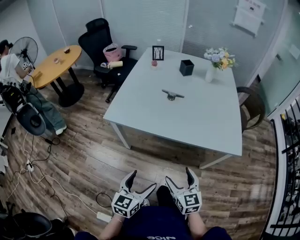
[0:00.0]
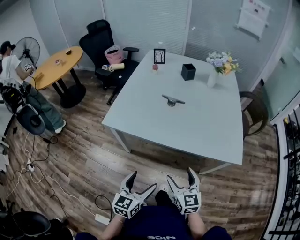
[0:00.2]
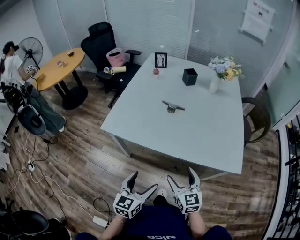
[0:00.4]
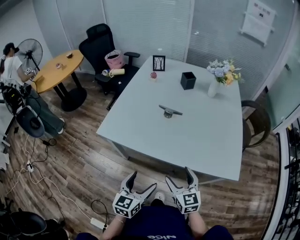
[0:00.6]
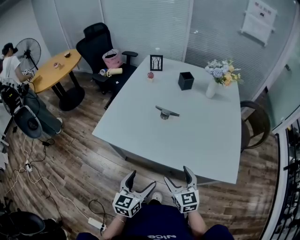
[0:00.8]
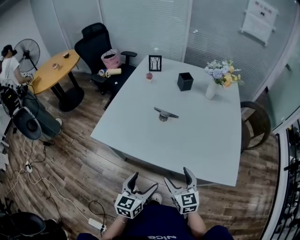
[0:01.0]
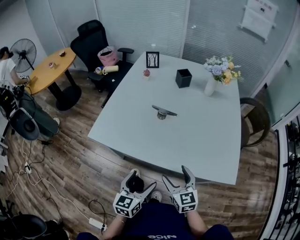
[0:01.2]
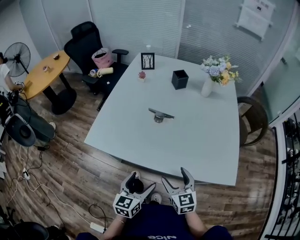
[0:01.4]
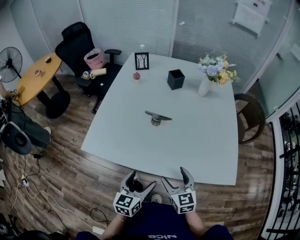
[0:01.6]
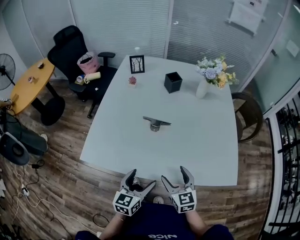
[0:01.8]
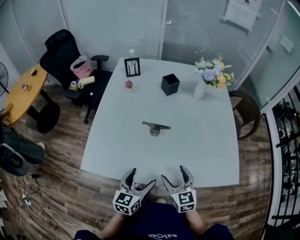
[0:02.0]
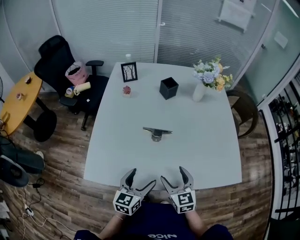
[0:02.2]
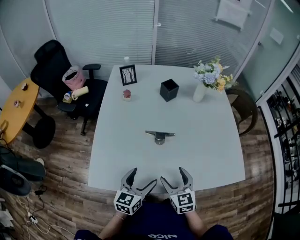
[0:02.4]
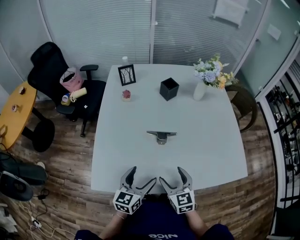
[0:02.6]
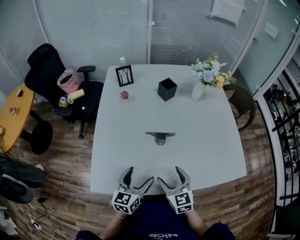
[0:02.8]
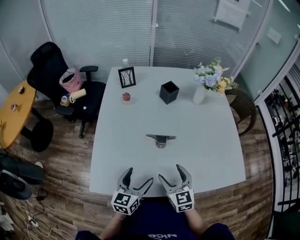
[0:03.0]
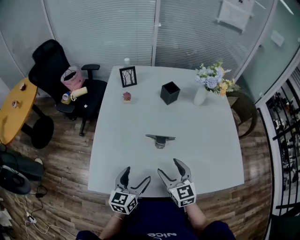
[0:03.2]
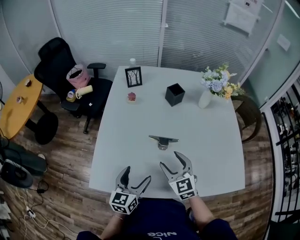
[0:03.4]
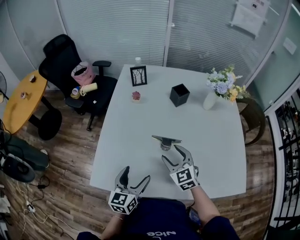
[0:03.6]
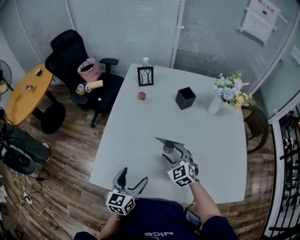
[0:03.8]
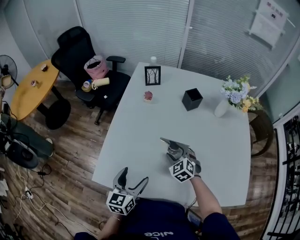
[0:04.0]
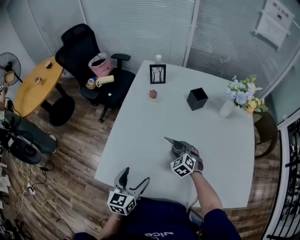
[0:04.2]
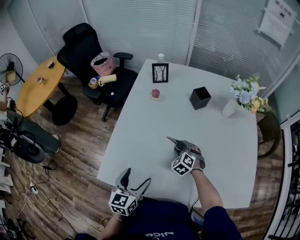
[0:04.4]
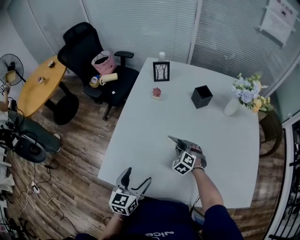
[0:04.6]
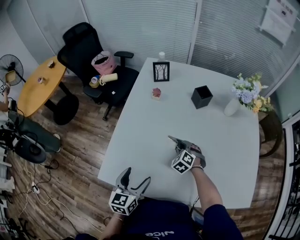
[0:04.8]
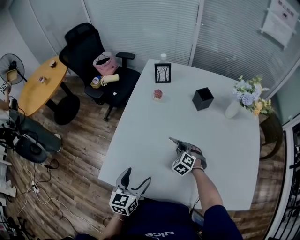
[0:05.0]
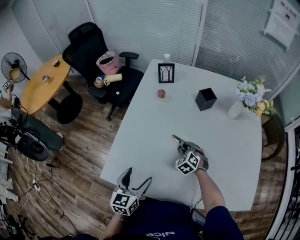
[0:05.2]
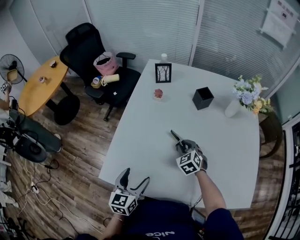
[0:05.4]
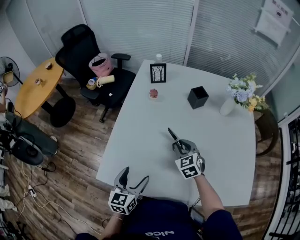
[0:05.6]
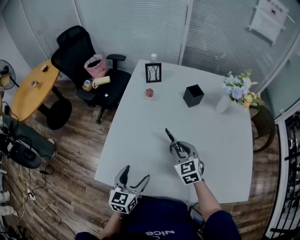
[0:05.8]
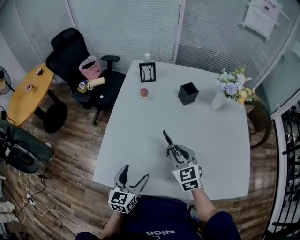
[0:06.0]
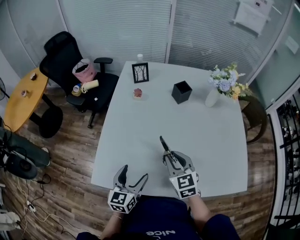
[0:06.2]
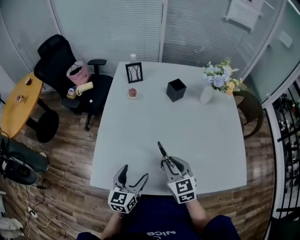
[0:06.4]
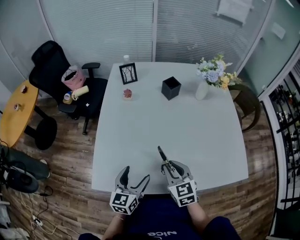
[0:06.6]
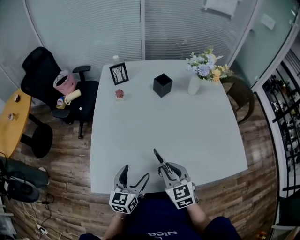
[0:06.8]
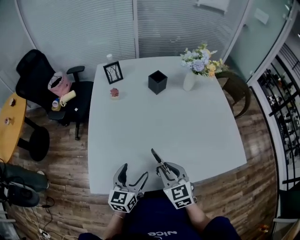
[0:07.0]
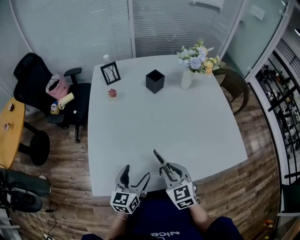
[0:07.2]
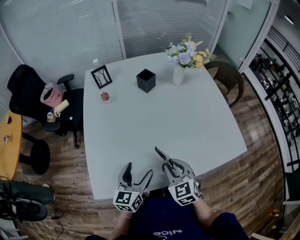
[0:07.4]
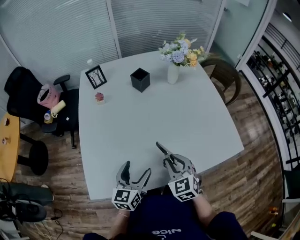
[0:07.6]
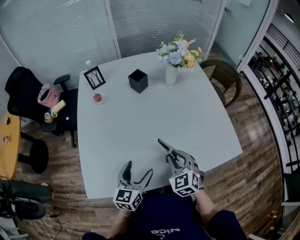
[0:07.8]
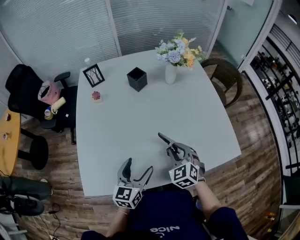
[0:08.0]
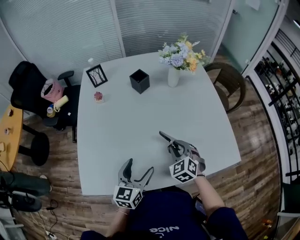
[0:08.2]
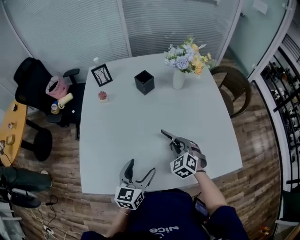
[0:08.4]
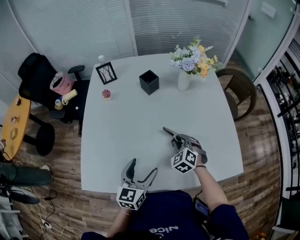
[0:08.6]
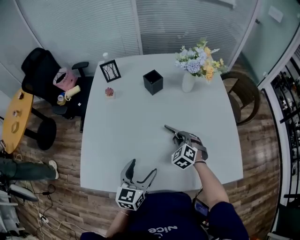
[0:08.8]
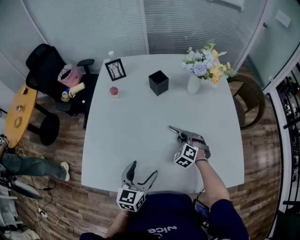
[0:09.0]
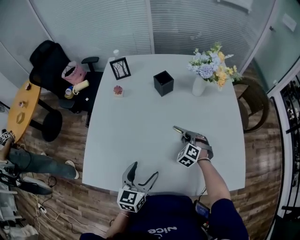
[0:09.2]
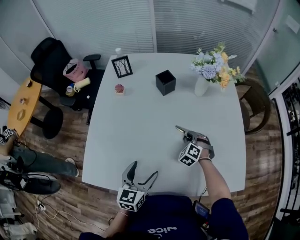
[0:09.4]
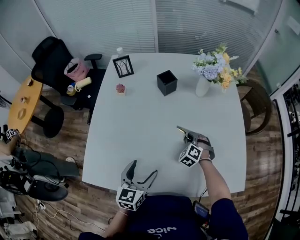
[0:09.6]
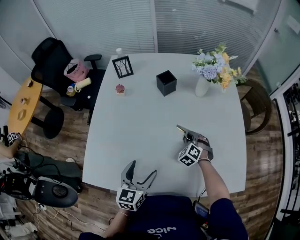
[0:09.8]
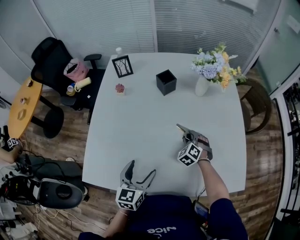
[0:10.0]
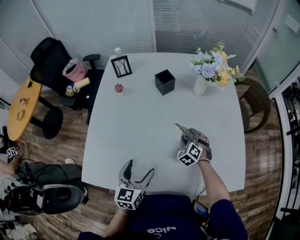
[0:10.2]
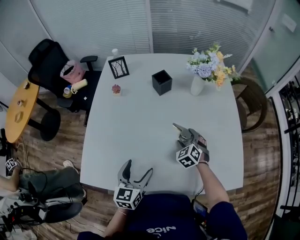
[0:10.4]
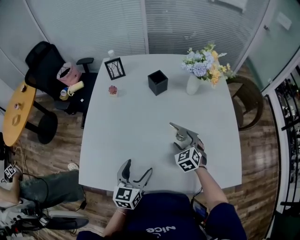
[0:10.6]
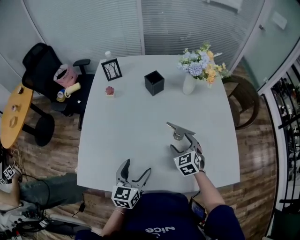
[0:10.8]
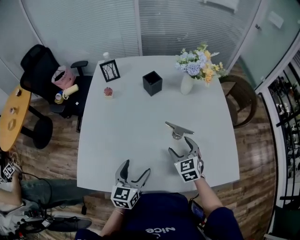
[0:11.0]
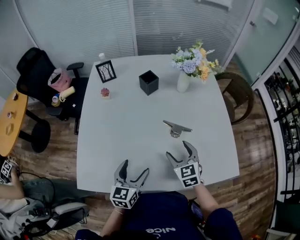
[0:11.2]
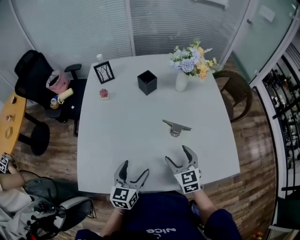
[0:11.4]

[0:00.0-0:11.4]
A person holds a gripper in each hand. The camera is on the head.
0:00.0 to 0:01.4: The left gripper is displaced forward and to the right by some 20 cm; the right gripper heads forward, covering some 20 cm.
0:01.4 to 0:02.8: The right gripper is displaced to the left and forward by some 20 cm. Meanwhile the left gripper travels forward and to the left by roughly 25 cm.
0:02.8 to 0:04.2: The left gripper moves about 5 cm. The right gripper moves forward and downward, approximately 20 cm, and swivels roughly 40 degrees.
0:04.2 to 0:05.6: The right gripper moves upward, about 10 cm.
0:05.6 to 0:07.2: The right gripper goes roughly 20 cm backward, and rotates some 20 degrees. Meanwhile the left gripper goes some 5 cm to the right, and rotates approximately 20 degrees.
0:07.2 to 0:08.6: The right gripper heads forward, to the right and downward, covering about 25 cm, and turns by roughly 30 degrees, while the left gripper is displaced to the right and forward by roughly 15 cm.
0:08.6 to 0:10.0: The right gripper shifts roughly 10 cm forward and downward.
0:10.0 to 0:11.4: The right gripper is displaced backward and upward by about 20 cm, rotates roughly 50 degrees, and opens its fingers.

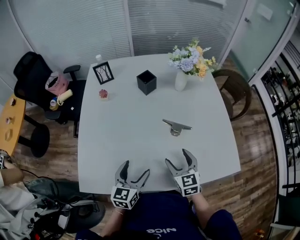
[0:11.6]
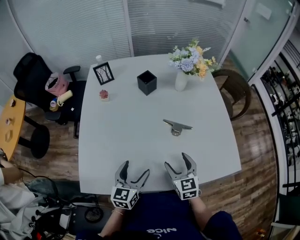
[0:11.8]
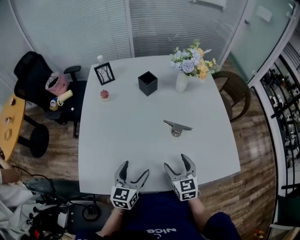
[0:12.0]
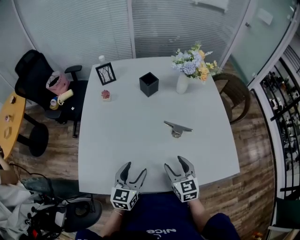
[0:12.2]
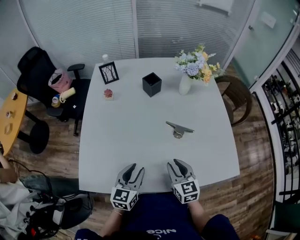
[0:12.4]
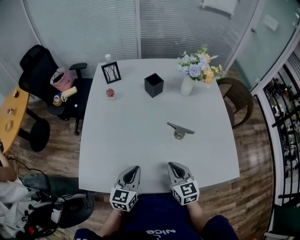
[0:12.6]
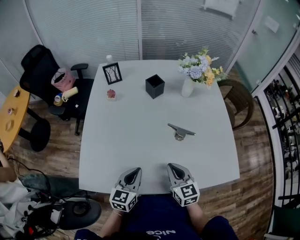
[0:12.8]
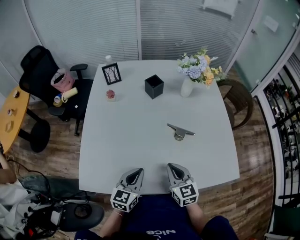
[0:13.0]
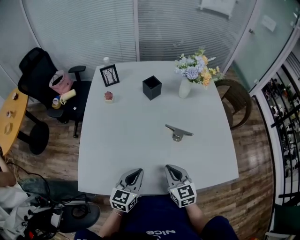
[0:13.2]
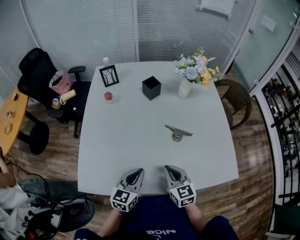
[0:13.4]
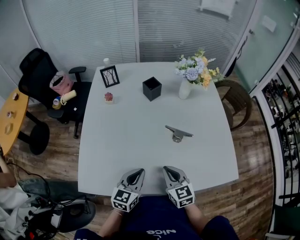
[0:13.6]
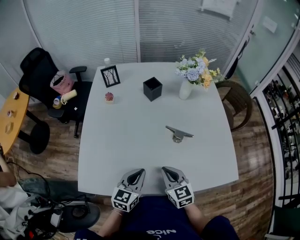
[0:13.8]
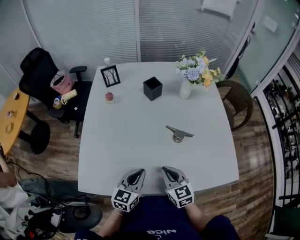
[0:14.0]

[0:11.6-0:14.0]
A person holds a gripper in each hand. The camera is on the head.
0:11.6 to 0:12.8: The left gripper closes its fingers. The right gripper changes place by about 5 cm, and closes up.
0:12.8 to 0:14.0: The grippers make only small movements.

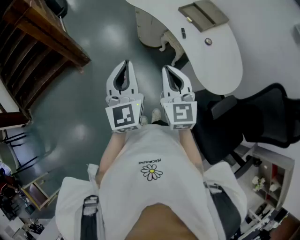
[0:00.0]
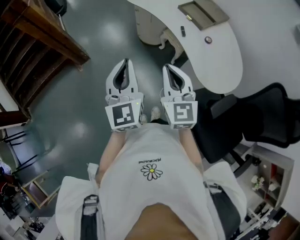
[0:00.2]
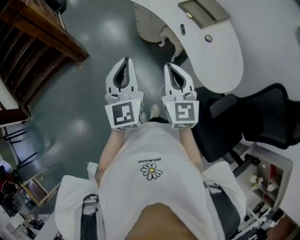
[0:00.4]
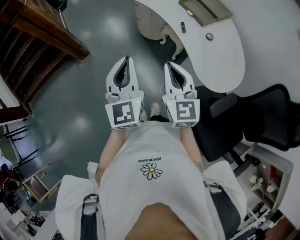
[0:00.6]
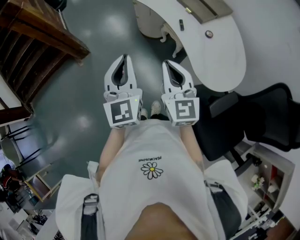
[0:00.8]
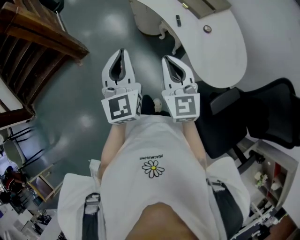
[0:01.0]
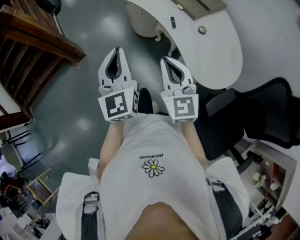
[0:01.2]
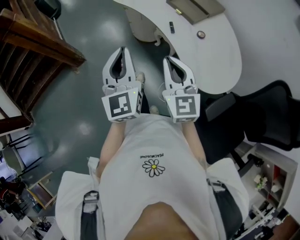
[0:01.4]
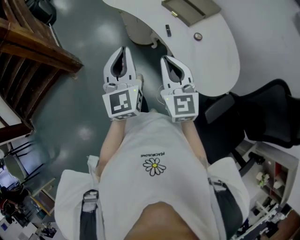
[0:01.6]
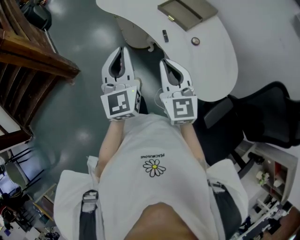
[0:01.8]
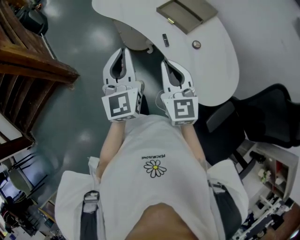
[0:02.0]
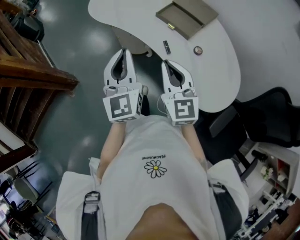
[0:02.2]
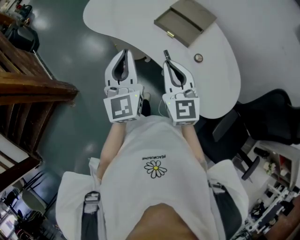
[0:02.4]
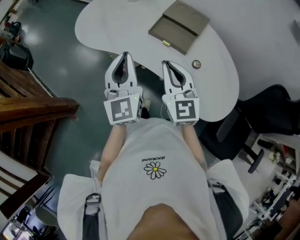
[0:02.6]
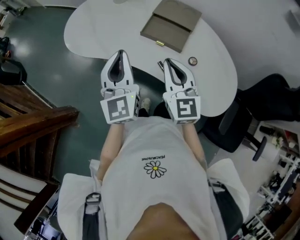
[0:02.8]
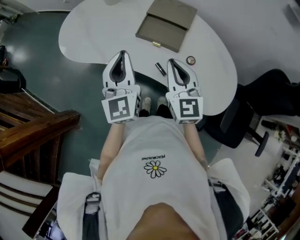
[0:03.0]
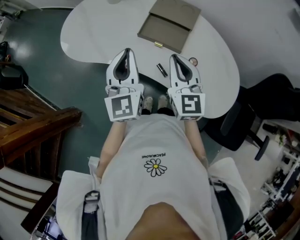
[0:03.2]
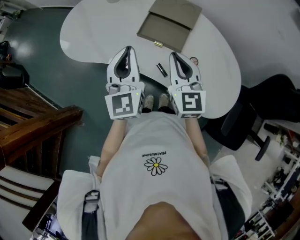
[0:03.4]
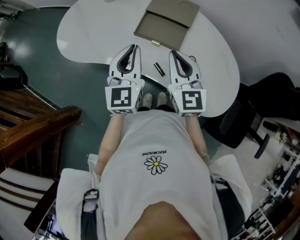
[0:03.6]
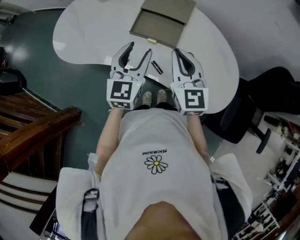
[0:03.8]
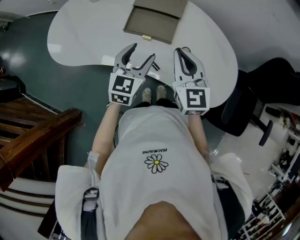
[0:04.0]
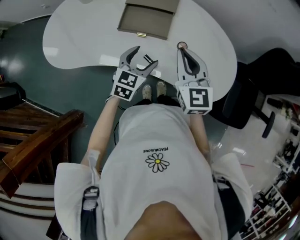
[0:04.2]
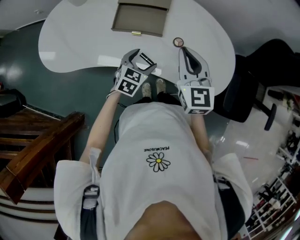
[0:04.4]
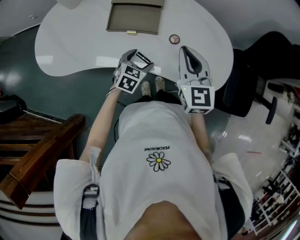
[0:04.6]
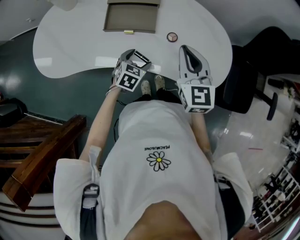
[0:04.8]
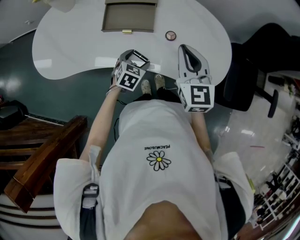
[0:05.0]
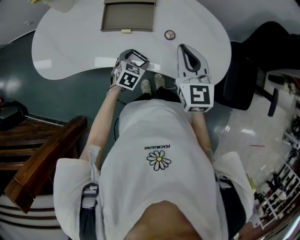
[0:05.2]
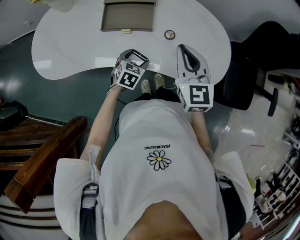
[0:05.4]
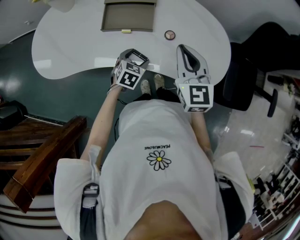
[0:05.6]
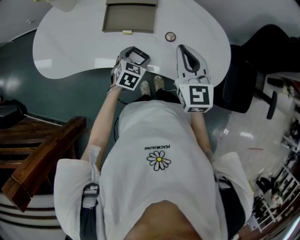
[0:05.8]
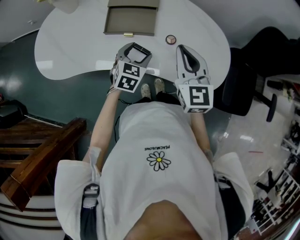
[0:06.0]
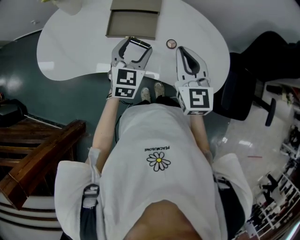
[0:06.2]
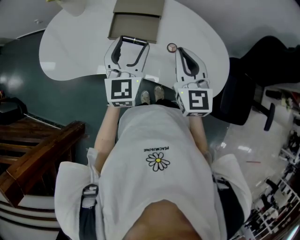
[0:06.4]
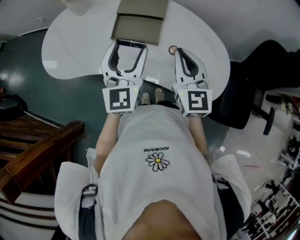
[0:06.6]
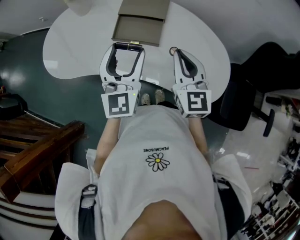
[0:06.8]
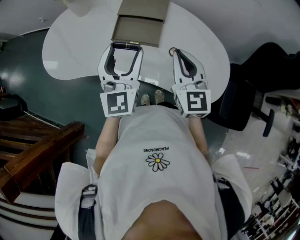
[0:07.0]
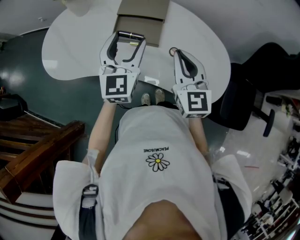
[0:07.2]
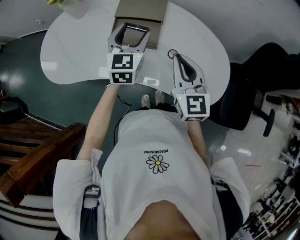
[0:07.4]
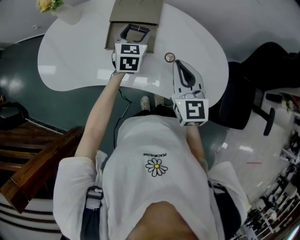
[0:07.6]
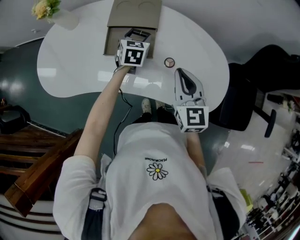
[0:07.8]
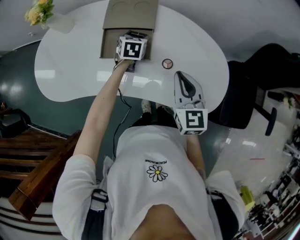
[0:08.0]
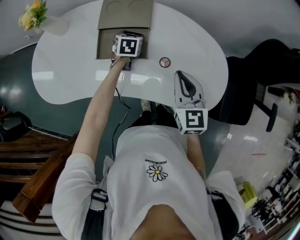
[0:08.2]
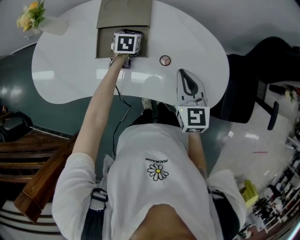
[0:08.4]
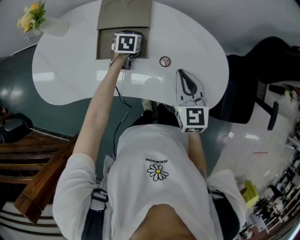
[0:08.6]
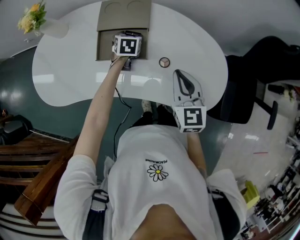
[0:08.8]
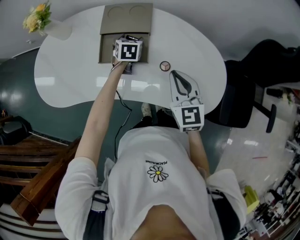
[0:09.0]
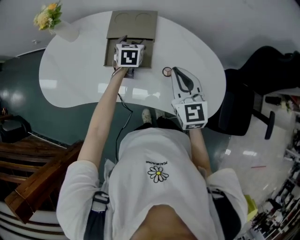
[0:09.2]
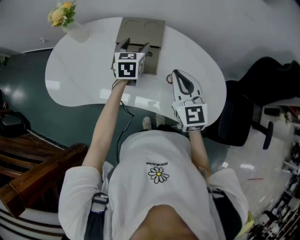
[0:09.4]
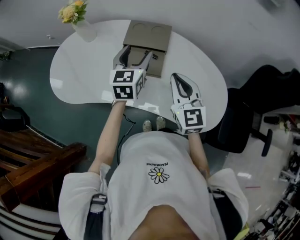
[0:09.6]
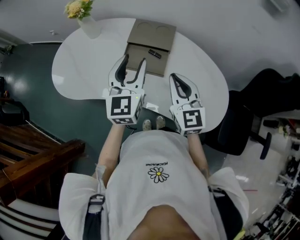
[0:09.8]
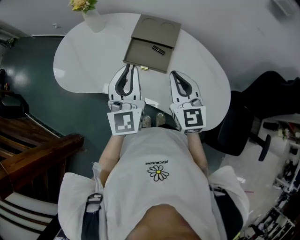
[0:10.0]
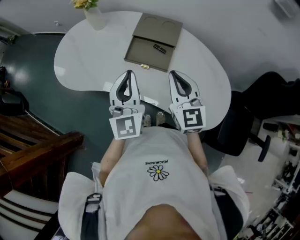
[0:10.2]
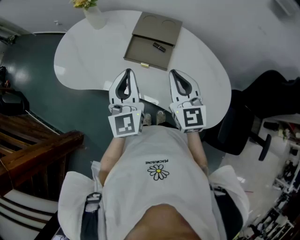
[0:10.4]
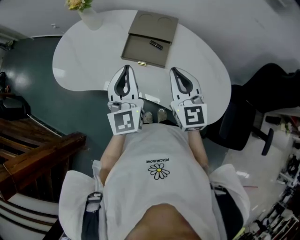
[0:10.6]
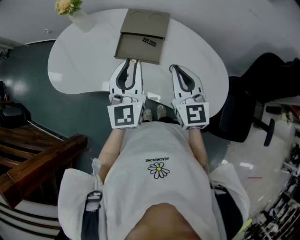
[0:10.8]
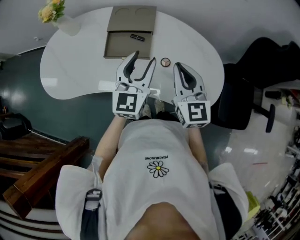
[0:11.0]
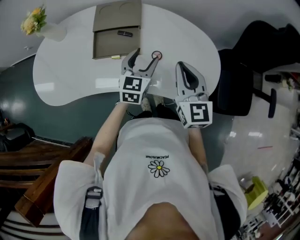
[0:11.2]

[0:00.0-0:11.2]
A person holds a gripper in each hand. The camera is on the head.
0:00.0 to 0:01.6: Both grippers travel together to the right and forward, roughly 10 cm.
0:01.6 to 0:03.2: The left gripper ends up approximately 30 cm from where it was, and changes its angle by roughly 30 degrees, while the right gripper moves some 25 cm, and changes its angle by approximately 30 degrees.
0:03.2 to 0:04.8: The left gripper shifts roughly 30 cm downward, points its fingers roughly 50 degrees further downward, and opens. The right gripper ends up about 15 cm from where it was.
0:04.8 to 0:06.4: The left gripper heads upward, covering about 25 cm, and angles its fingers upward, by some 40 degrees.
0:06.4 to 0:08.0: The right gripper heads downward, covering roughly 5 cm. The left gripper is displaced downward and forward by approximately 30 cm, and tips its fingers downward by approximately 40 degrees.
0:08.0 to 0:09.6: The right gripper heads upward and to the left, covering some 10 cm. Meanwhile the left gripper is displaced upward by approximately 20 cm, and turns by some 30 degrees.
0:09.6 to 0:11.2: The right gripper changes place by about 10 cm. The left gripper changes place by about 20 cm, changes its angle by approximately 20 degrees, and closes, then opens again.
